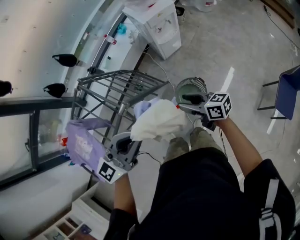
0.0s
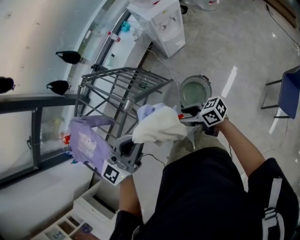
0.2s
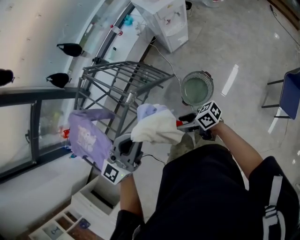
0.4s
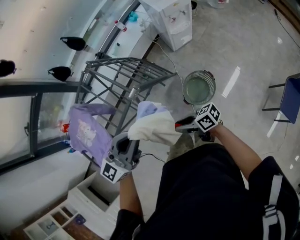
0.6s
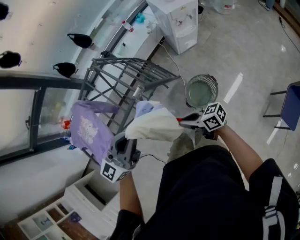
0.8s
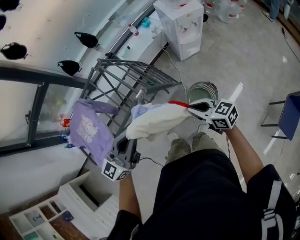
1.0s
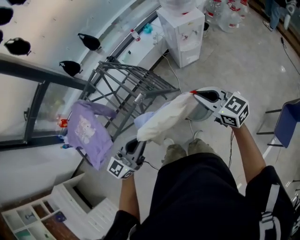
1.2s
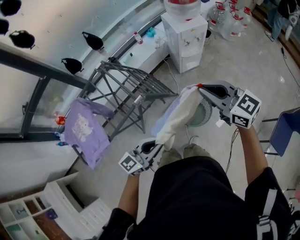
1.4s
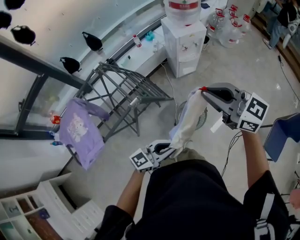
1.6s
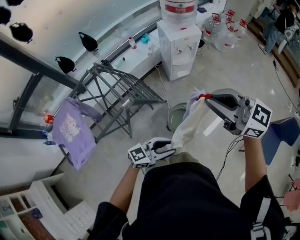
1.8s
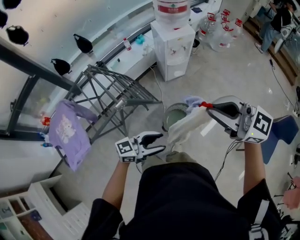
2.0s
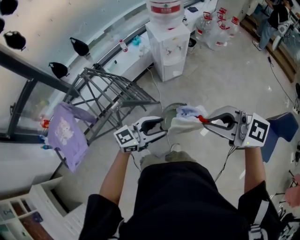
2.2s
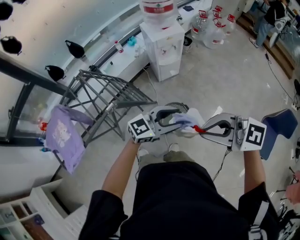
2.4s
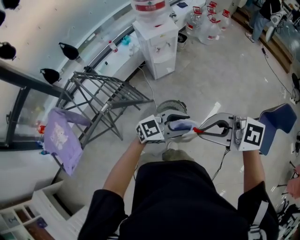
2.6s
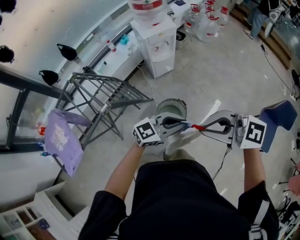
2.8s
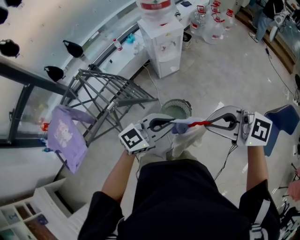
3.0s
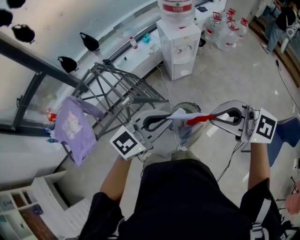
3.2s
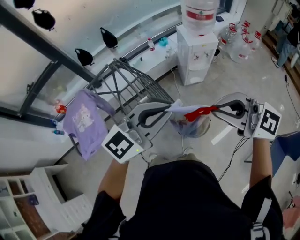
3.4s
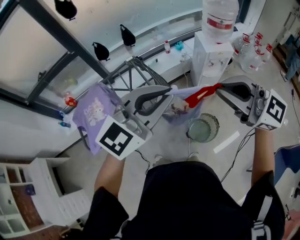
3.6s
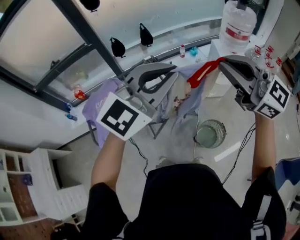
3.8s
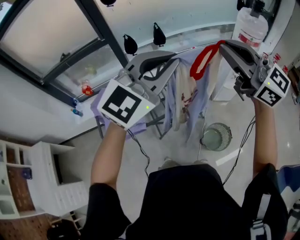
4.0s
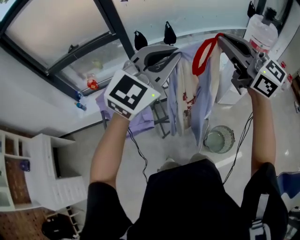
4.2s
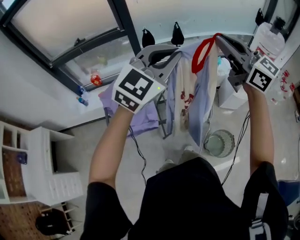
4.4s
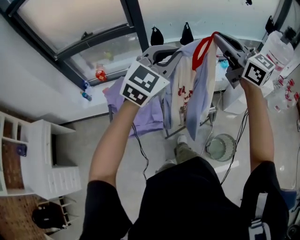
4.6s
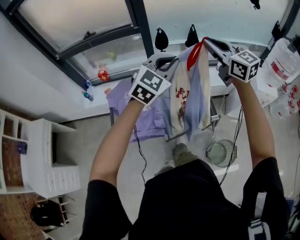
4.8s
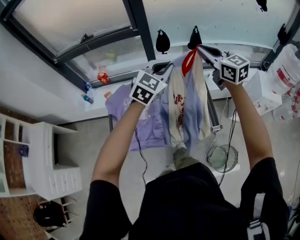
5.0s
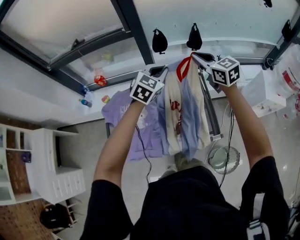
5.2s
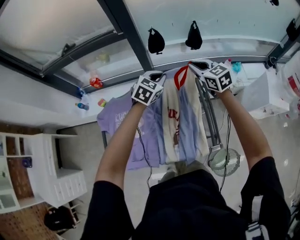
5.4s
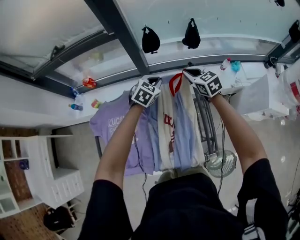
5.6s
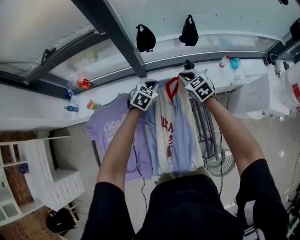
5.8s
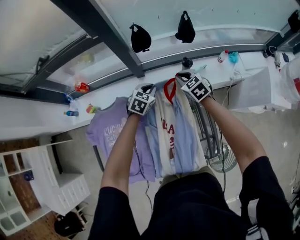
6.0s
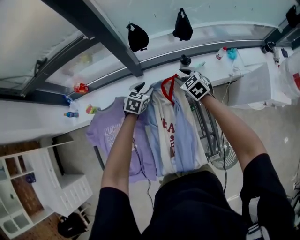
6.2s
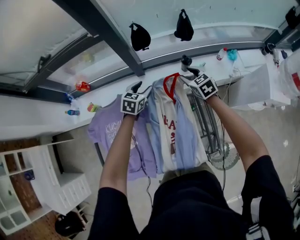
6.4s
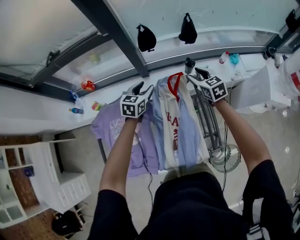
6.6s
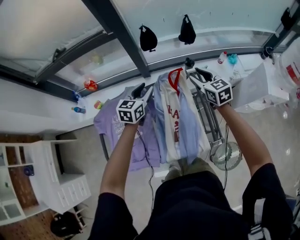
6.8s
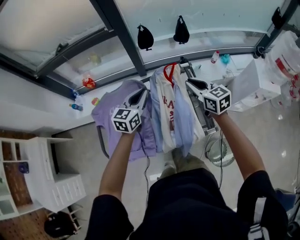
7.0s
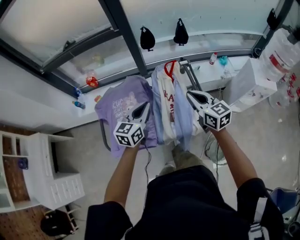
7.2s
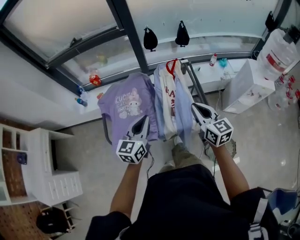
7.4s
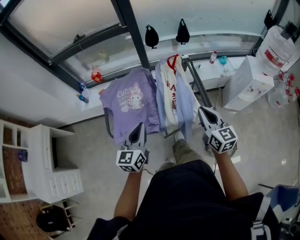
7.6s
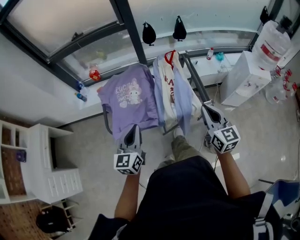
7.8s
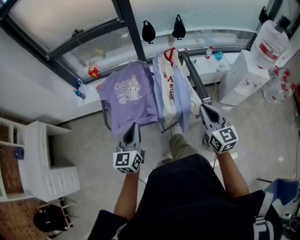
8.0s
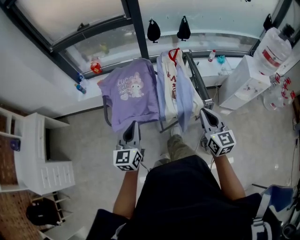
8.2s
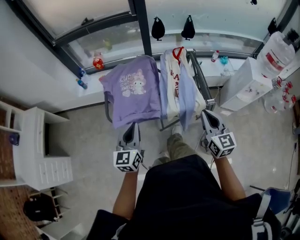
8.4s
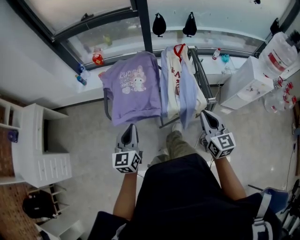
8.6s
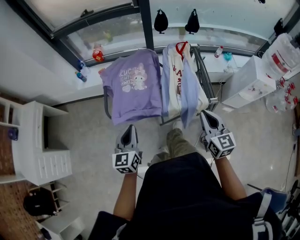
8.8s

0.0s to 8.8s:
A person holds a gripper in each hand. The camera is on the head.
0.0s to 1.4s: The right gripper moves upward, approximately 20 cm, turns by about 40 degrees, and closes its fingers. The left gripper goes some 15 cm downward.
1.4s to 3.0s: The right gripper ends up some 20 cm from where it was, and turns by about 20 degrees, while the left gripper ends up roughly 25 cm from where it was, swivels roughly 20 degrees, and opens and closes again.
3.0s to 4.4s: Both grippers are carried about 50 cm. The left gripper swivels approximately 60 degrees.
4.4s to 5.8s: The pair of grippers is taken forward, approximately 40 cm. The two grippers go some 50 cm downward. The right gripper tilts its fingers roughly 50 degrees downward; the left gripper tips its fingers downward by some 40 degrees.
5.8s to 7.4s: The two grippers travel together, backward, some 40 cm. Both grippers move upward, about 20 cm. The right gripper rotates some 40 degrees, and opens, then closes again. Meanwhile the left gripper points its fingers approximately 30 degrees further upward, and opens, then closes once more.
7.4s to 8.8s: The left gripper travels backward and to the left by approximately 20 cm, and rotates about 20 degrees, while the right gripper travels backward by approximately 10 cm.

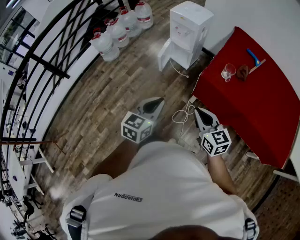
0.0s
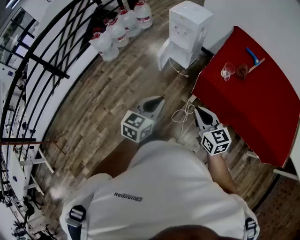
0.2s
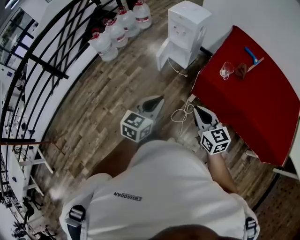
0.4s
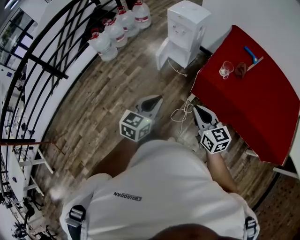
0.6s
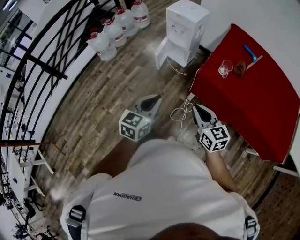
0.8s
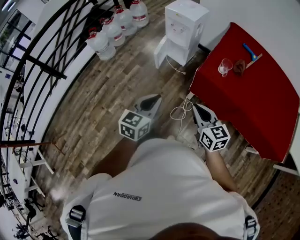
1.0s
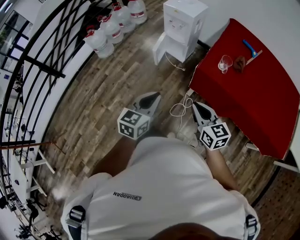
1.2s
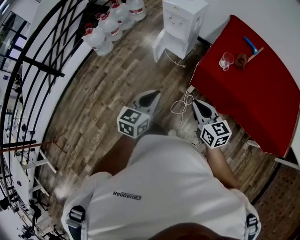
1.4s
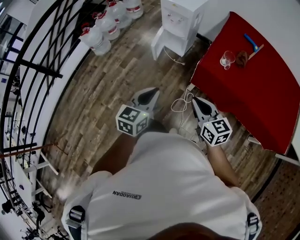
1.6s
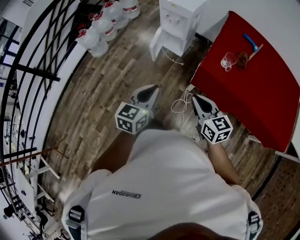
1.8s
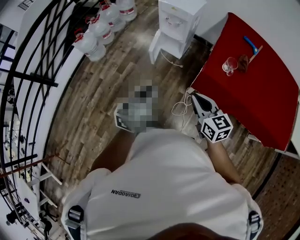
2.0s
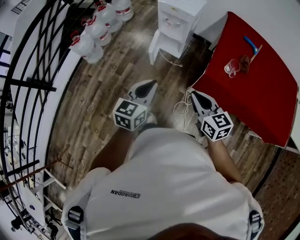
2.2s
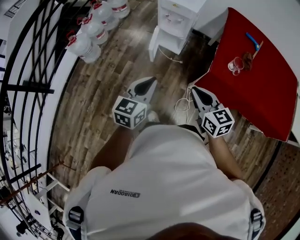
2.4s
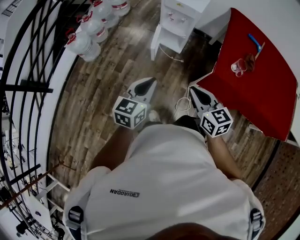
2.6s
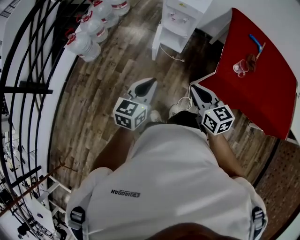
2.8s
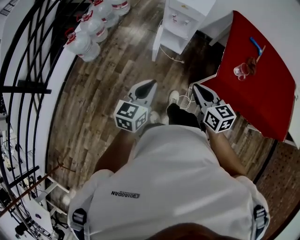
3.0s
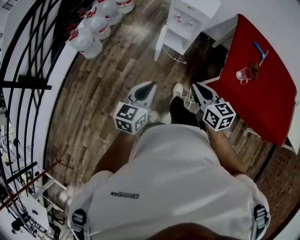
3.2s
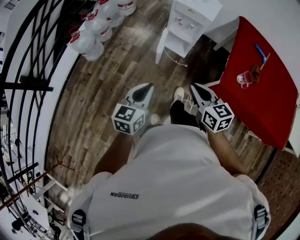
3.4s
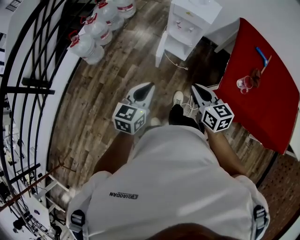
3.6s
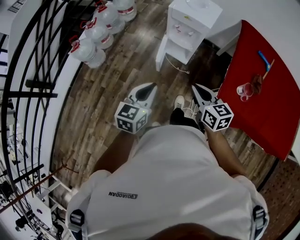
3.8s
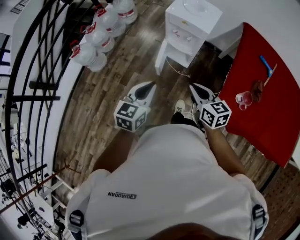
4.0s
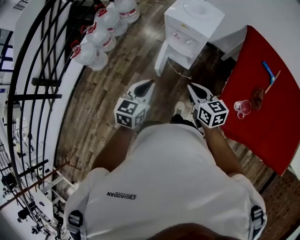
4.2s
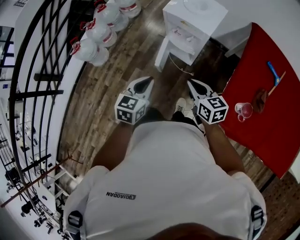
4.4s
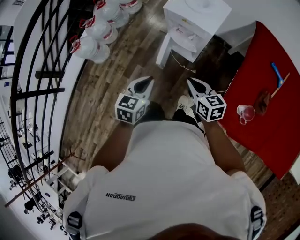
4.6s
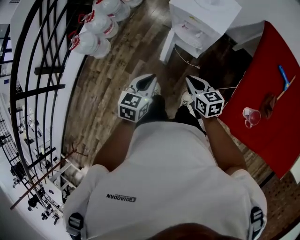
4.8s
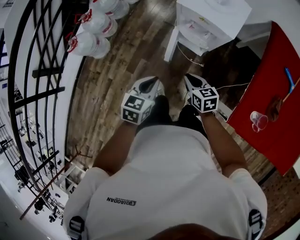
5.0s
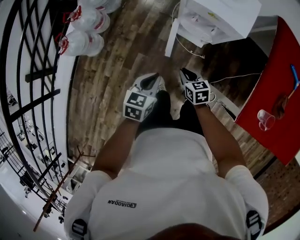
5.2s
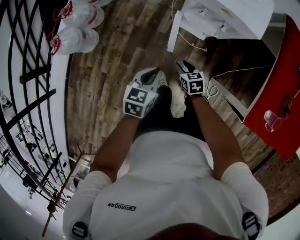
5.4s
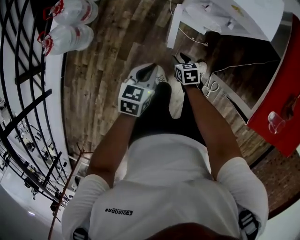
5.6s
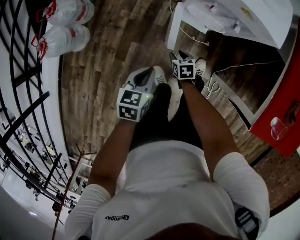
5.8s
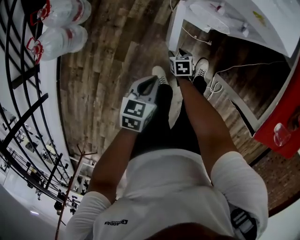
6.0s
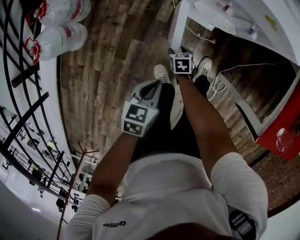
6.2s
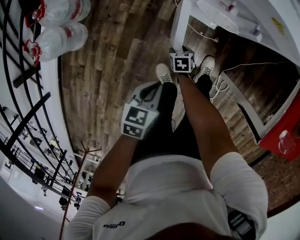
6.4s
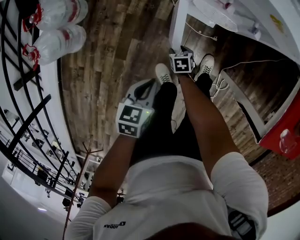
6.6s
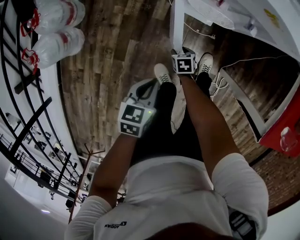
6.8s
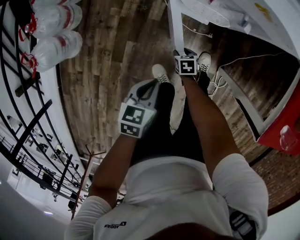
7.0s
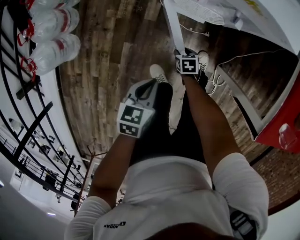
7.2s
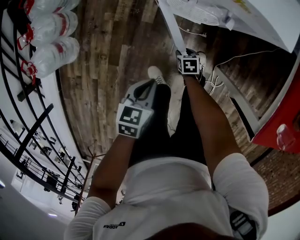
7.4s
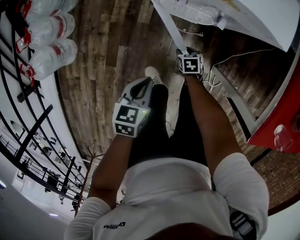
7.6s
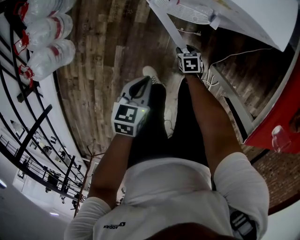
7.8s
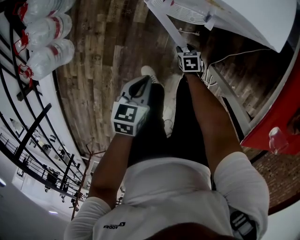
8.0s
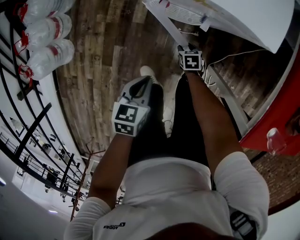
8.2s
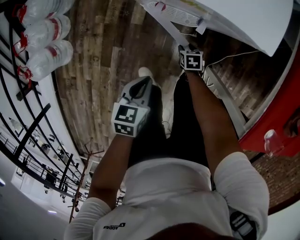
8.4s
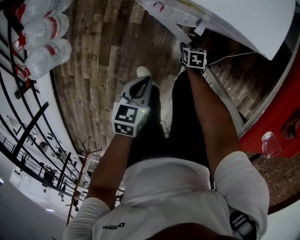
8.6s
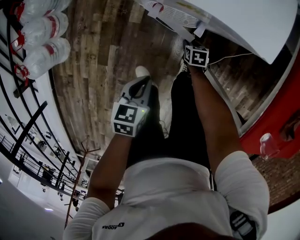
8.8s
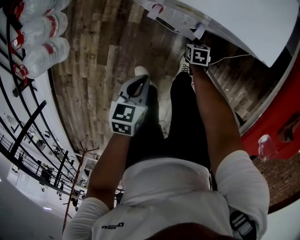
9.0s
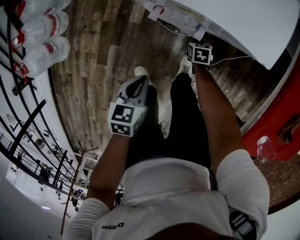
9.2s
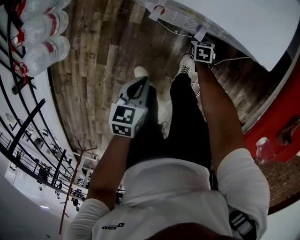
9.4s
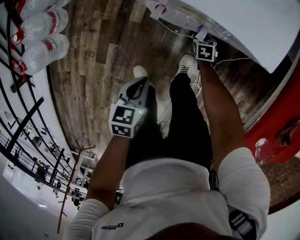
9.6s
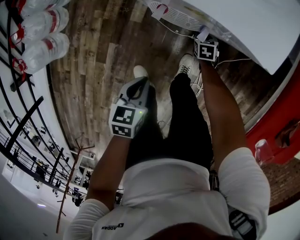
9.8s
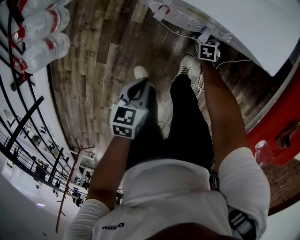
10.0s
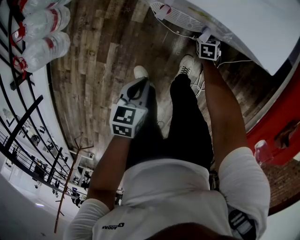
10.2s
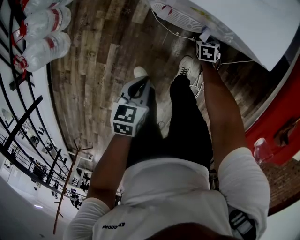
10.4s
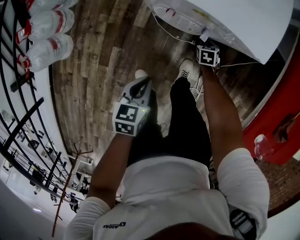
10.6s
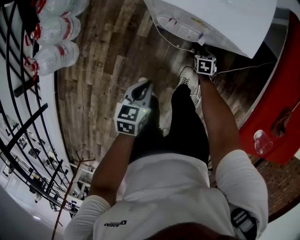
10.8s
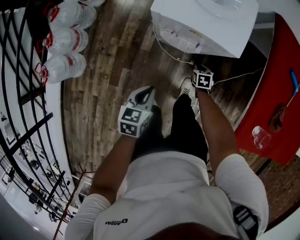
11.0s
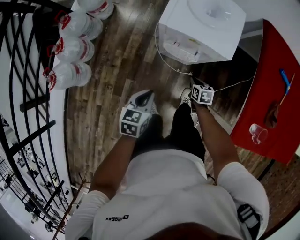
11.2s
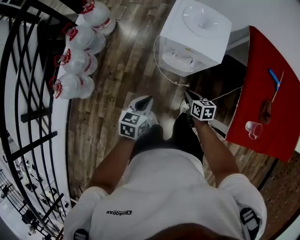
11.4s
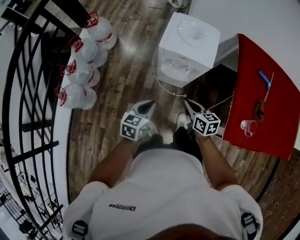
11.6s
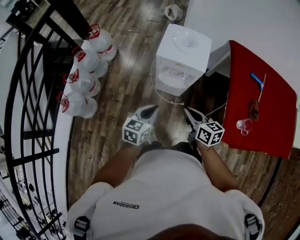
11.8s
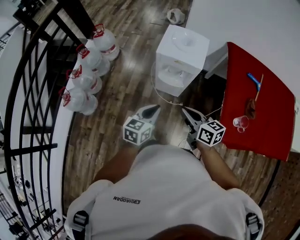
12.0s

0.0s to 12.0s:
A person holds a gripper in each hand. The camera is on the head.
0.0s to 1.6s: The grippers make only small movements.
1.6s to 3.0s: The two grippers go about 25 cm to the left and forward.
3.0s to 4.4s: The grippers both shift forward by approximately 25 cm.
4.4s to 6.0s: The right gripper travels downward and to the left by roughly 50 cm, tips its fingers downward by approximately 40 degrees, and opens its fingers; the left gripper moves downward and to the left, some 30 cm, and turns by some 30 degrees.
6.0s to 7.6s: The right gripper moves to the right and downward, some 15 cm; the left gripper heads to the right, covering roughly 5 cm.
7.6s to 9.0s: The left gripper shifts about 5 cm to the right, while the right gripper moves to the right and forward, roughly 15 cm.
9.0s to 10.4s: The right gripper goes some 5 cm forward.
10.4s to 12.0s: The right gripper travels upward and backward by about 60 cm, angles its fingers upward, by some 50 degrees, and closes up. Meanwhile the left gripper heads upward, covering about 30 cm, and swivels roughly 30 degrees.

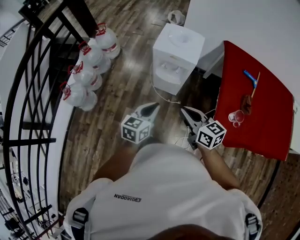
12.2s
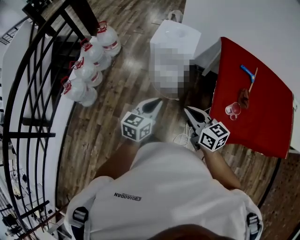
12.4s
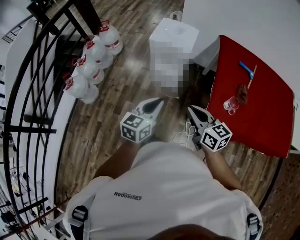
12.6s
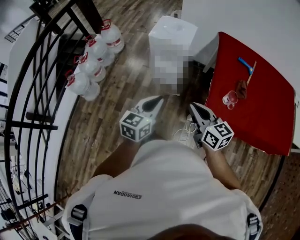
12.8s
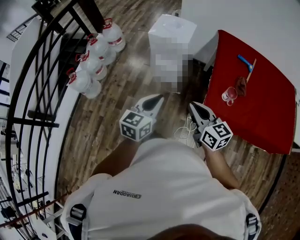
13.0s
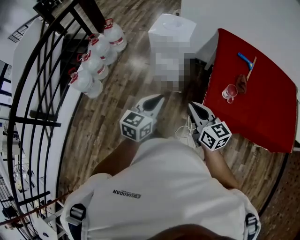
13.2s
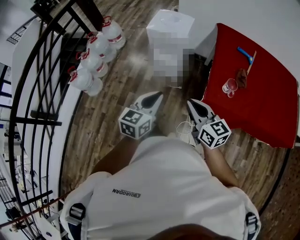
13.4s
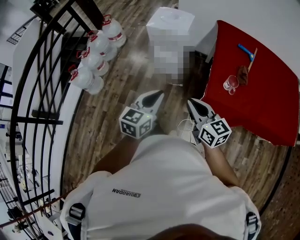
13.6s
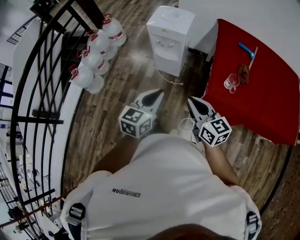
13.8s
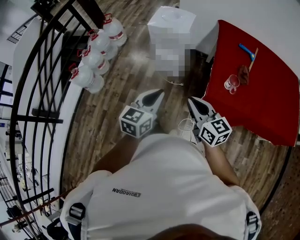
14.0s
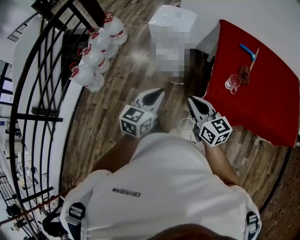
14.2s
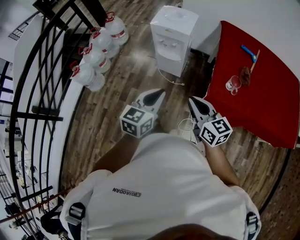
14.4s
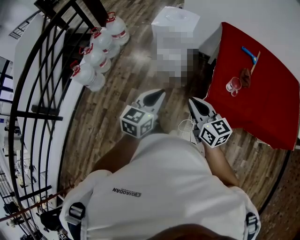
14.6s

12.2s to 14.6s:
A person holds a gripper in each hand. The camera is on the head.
12.2s to 13.4s: The two grippers go approximately 20 cm backward and to the right.
13.4s to 14.6s: There are only small adjustments of the grippers.
